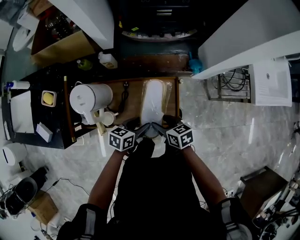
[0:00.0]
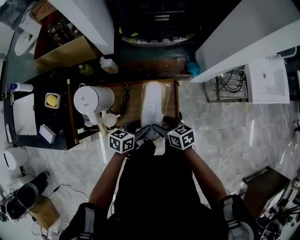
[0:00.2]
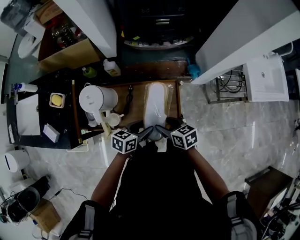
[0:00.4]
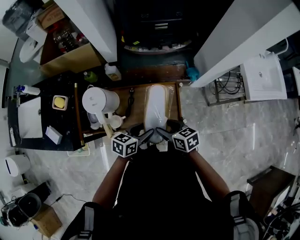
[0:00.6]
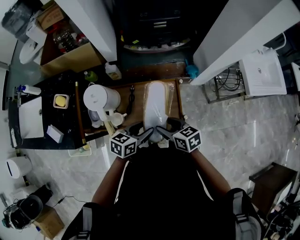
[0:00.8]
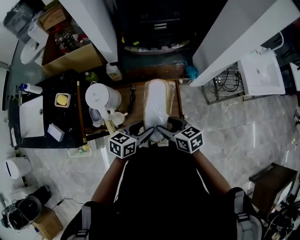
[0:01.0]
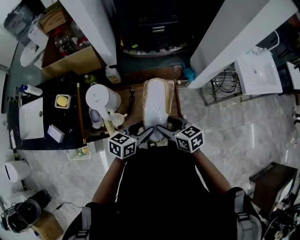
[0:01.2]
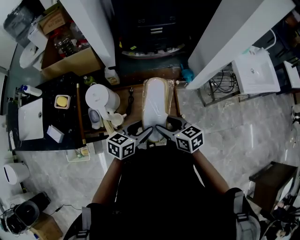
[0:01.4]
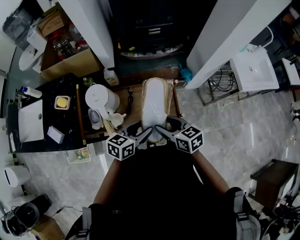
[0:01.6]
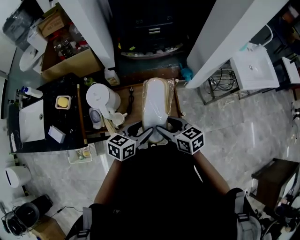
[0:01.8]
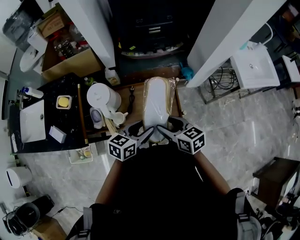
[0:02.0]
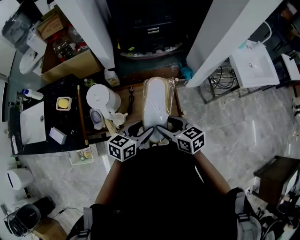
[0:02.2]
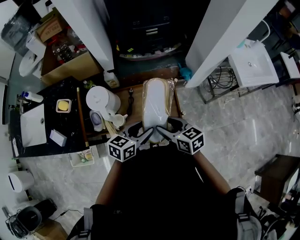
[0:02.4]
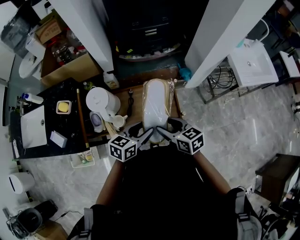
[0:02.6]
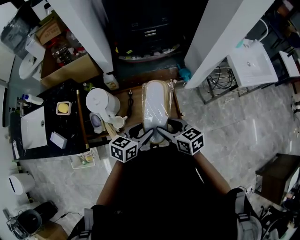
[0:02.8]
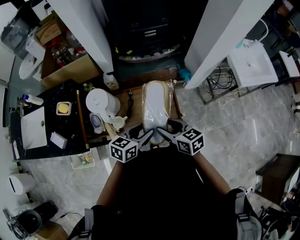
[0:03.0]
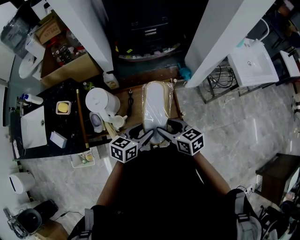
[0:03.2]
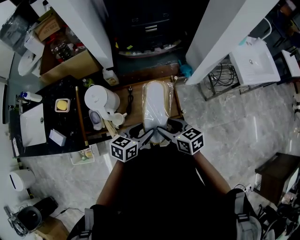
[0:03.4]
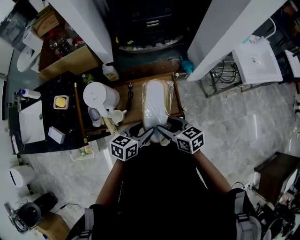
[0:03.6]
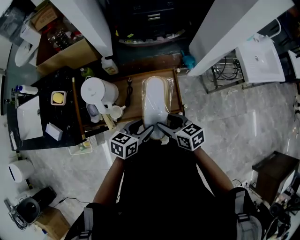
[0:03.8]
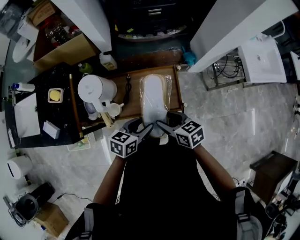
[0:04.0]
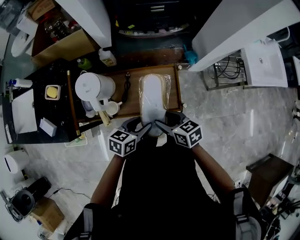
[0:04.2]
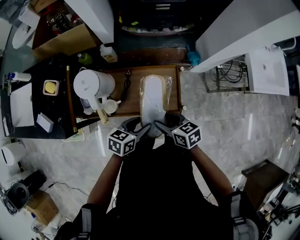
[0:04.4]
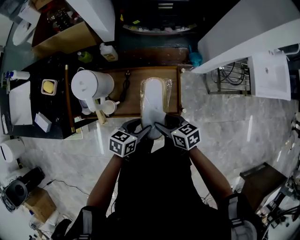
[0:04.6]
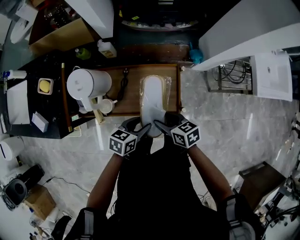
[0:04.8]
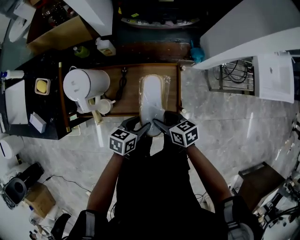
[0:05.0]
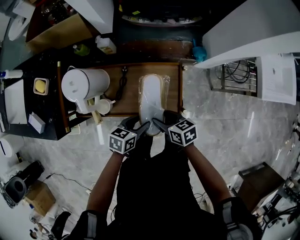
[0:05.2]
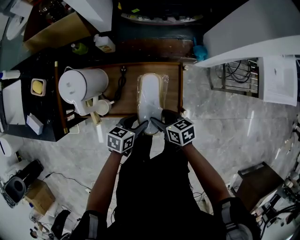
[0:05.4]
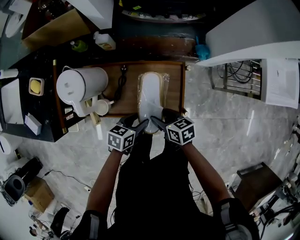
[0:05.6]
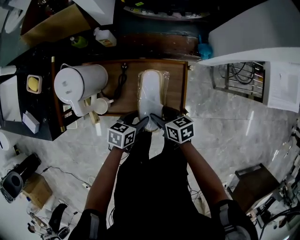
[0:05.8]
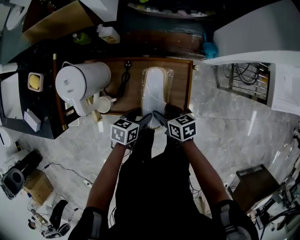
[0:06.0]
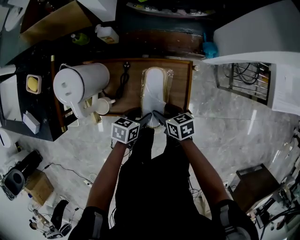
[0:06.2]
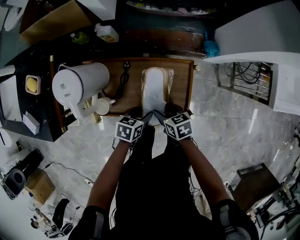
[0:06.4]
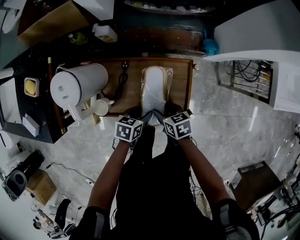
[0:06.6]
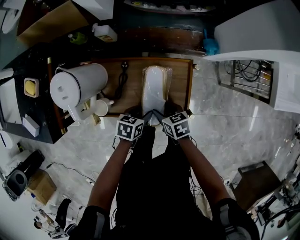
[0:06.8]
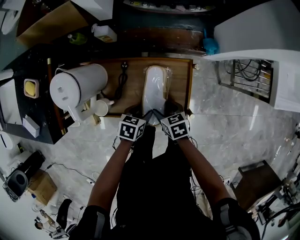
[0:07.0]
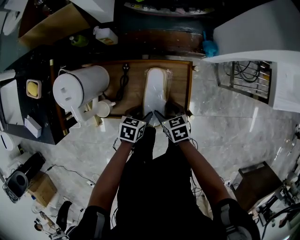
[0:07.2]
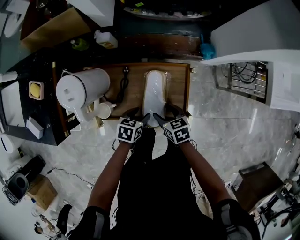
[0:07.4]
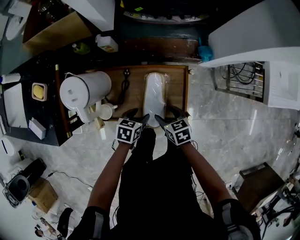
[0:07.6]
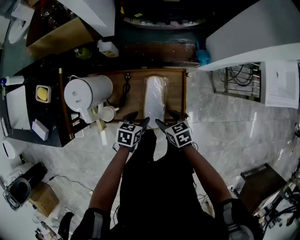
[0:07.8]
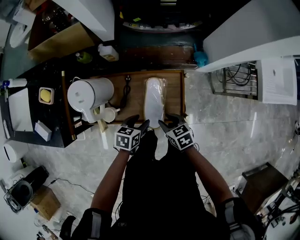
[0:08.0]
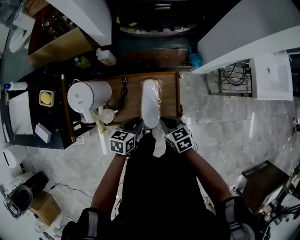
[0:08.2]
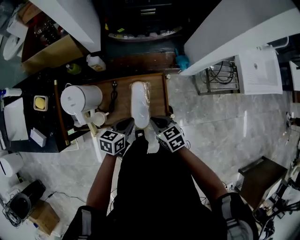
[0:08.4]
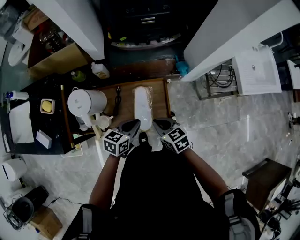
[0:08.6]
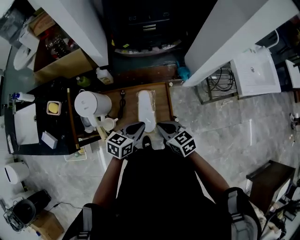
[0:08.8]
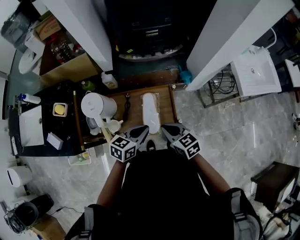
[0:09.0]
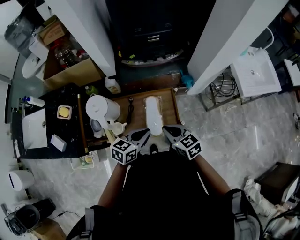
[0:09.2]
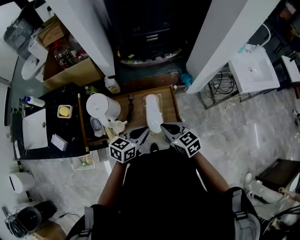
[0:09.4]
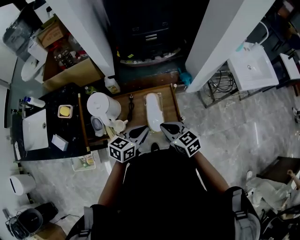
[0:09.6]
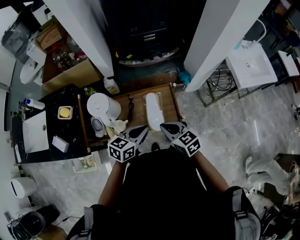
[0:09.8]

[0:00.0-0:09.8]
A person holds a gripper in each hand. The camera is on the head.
0:00.0 to 0:01.4: The grippers both shift upward and backward by some 15 cm.
0:01.4 to 0:02.8: The grippers stay close to where they were, moving slightly.
0:02.8 to 0:04.2: The grippers both shift downward by approximately 5 cm.
0:04.2 to 0:05.6: Both grippers move downward, roughly 15 cm.
0:05.6 to 0:07.0: Both grippers travel together downward, about 10 cm.
0:07.0 to 0:08.4: Both grippers travel together upward, approximately 15 cm. The left gripper turns by about 20 degrees, and closes its fingers; the right gripper closes its fingers.
0:08.4 to 0:09.8: The two grippers go approximately 15 cm upward and backward.

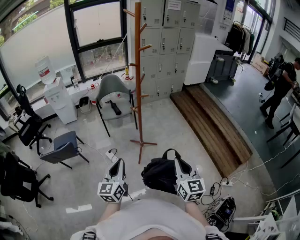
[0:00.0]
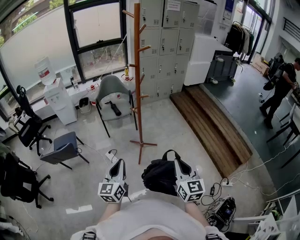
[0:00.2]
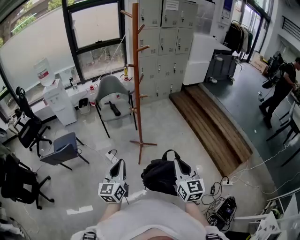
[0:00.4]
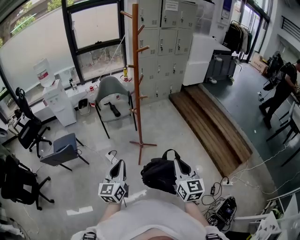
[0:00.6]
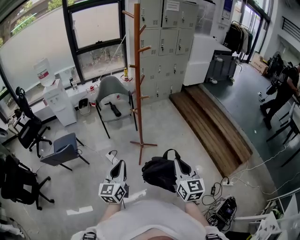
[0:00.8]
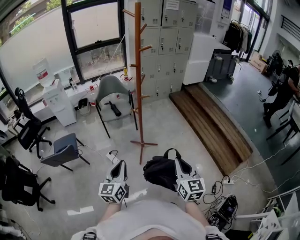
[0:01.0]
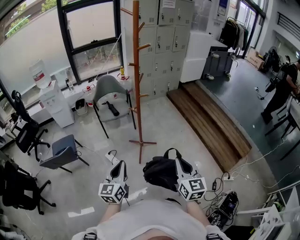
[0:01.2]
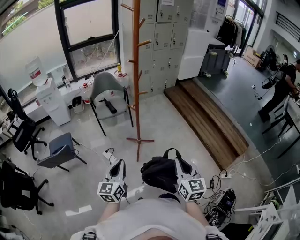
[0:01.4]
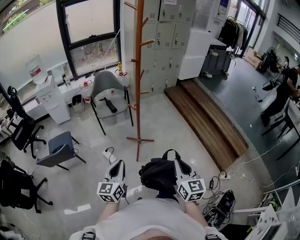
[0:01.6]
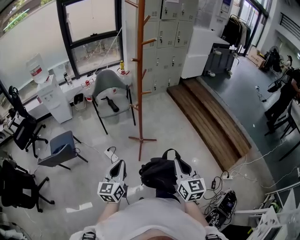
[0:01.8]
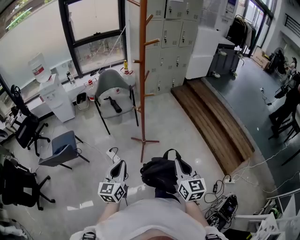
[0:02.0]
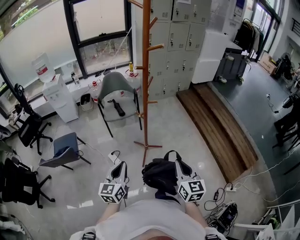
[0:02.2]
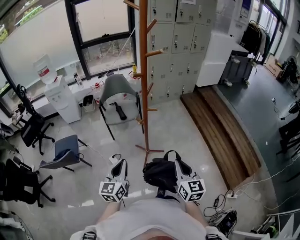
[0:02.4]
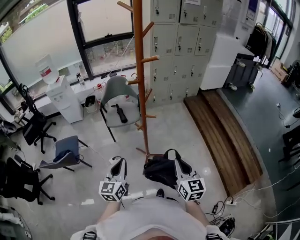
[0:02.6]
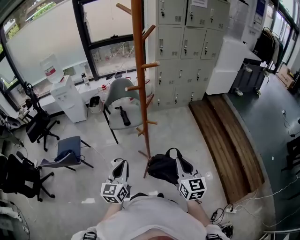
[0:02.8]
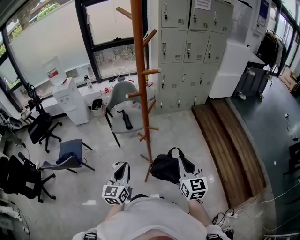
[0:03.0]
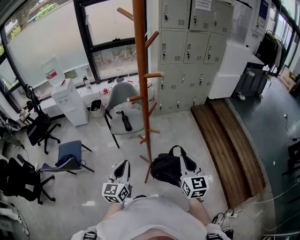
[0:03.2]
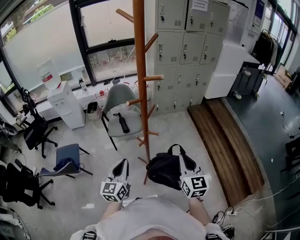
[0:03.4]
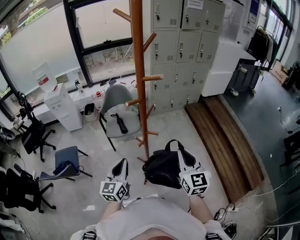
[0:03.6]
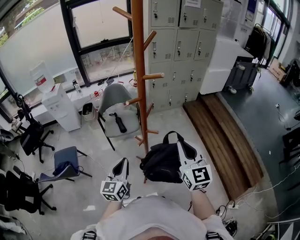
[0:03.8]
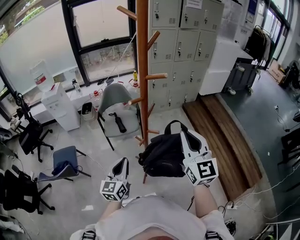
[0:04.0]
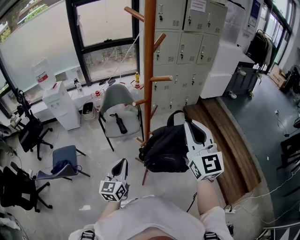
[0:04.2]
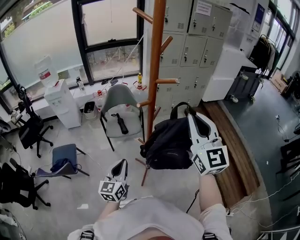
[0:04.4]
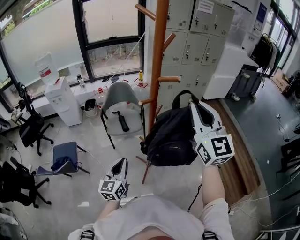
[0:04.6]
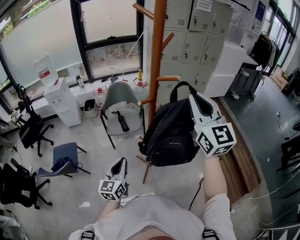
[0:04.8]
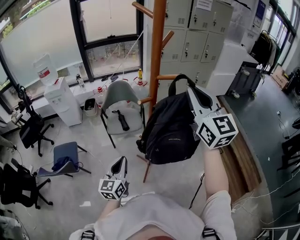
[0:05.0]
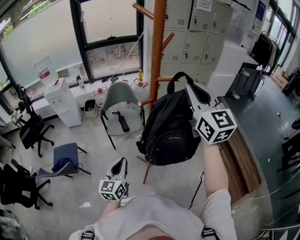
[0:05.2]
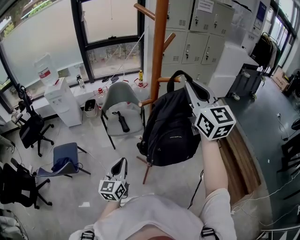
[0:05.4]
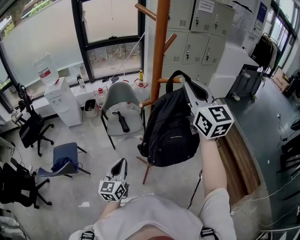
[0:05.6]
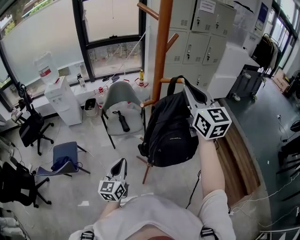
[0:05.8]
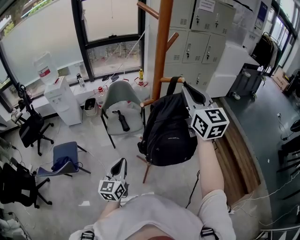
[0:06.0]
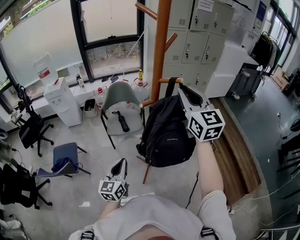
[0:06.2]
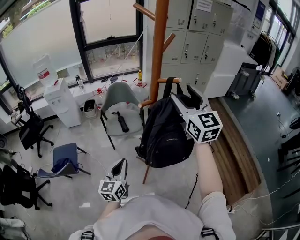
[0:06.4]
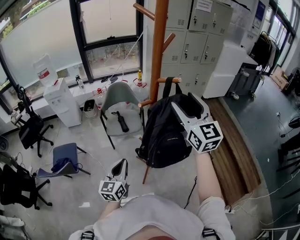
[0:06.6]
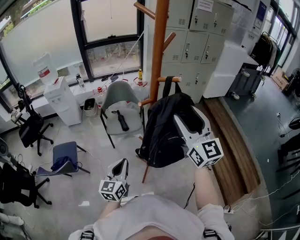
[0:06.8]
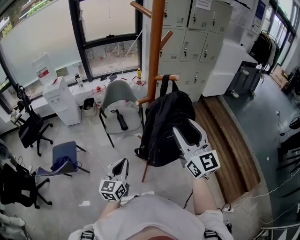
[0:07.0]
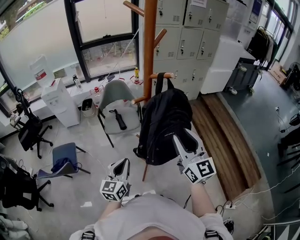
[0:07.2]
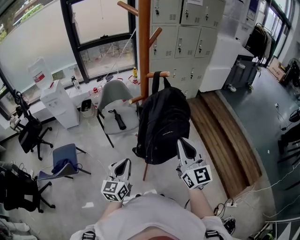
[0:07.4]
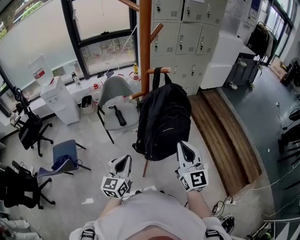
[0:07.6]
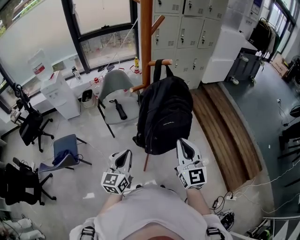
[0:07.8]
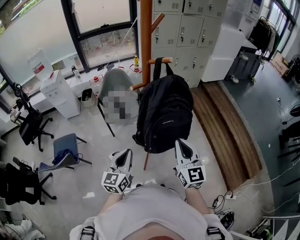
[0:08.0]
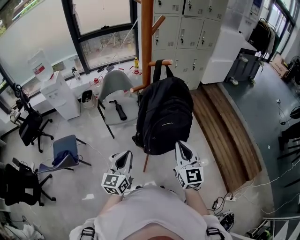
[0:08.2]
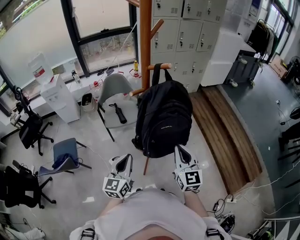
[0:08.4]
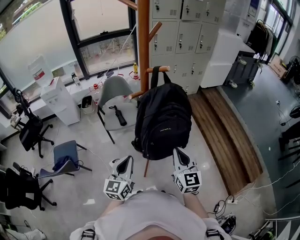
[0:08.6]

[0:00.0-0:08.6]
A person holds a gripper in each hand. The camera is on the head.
0:00.0 to 0:01.4: The grippers make only small movements.
0:01.4 to 0:02.8: Both grippers travel together forward, about 25 cm.
0:02.8 to 0:04.4: The left gripper heads forward and to the left, covering approximately 10 cm. Meanwhile the right gripper moves upward and forward, roughly 30 cm, and swivels about 30 degrees.
0:04.4 to 0:05.8: The right gripper goes about 10 cm forward.
0:05.8 to 0:07.2: The right gripper travels downward and backward by approximately 20 cm, and opens.
0:07.2 to 0:08.6: The right gripper shifts some 10 cm downward, and closes.

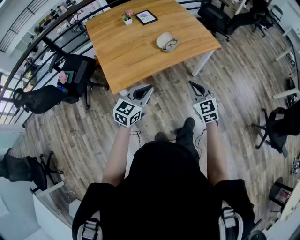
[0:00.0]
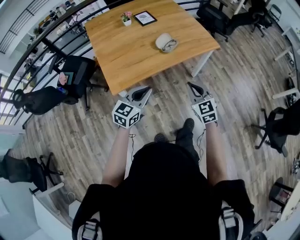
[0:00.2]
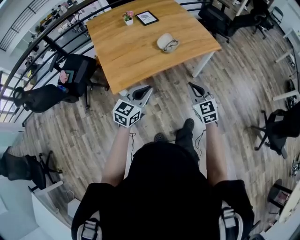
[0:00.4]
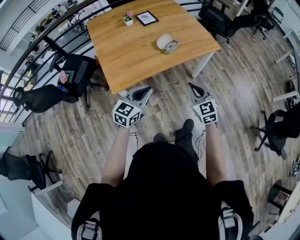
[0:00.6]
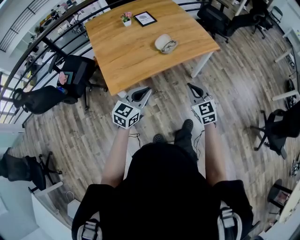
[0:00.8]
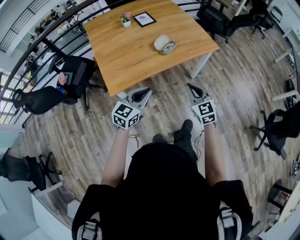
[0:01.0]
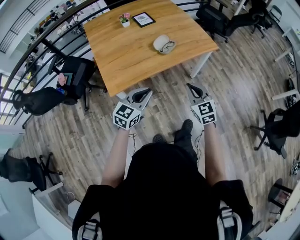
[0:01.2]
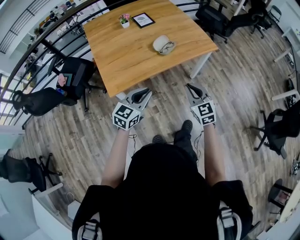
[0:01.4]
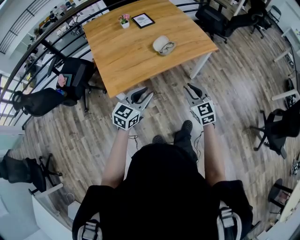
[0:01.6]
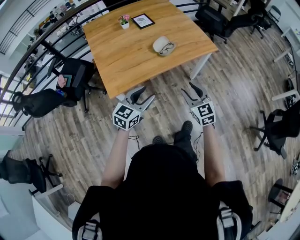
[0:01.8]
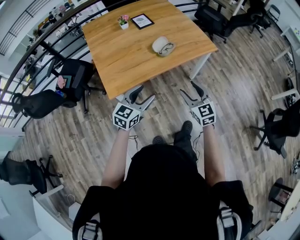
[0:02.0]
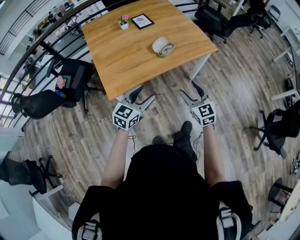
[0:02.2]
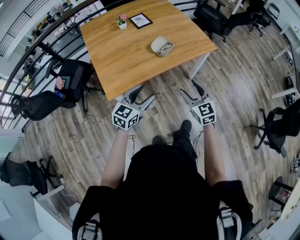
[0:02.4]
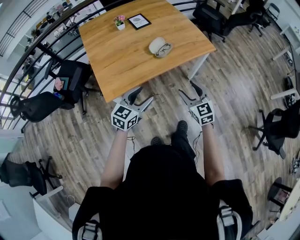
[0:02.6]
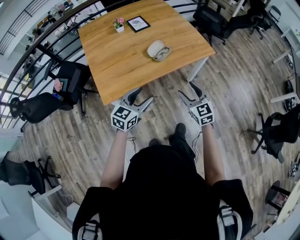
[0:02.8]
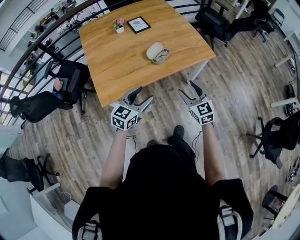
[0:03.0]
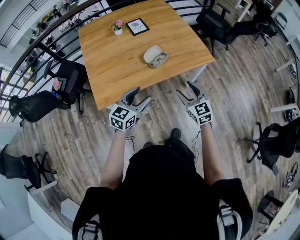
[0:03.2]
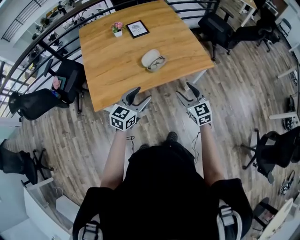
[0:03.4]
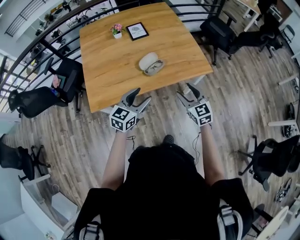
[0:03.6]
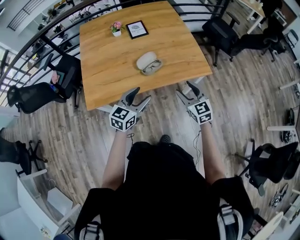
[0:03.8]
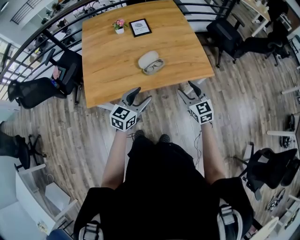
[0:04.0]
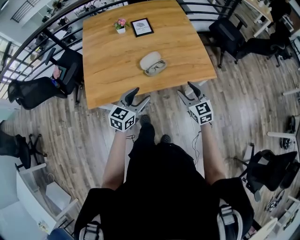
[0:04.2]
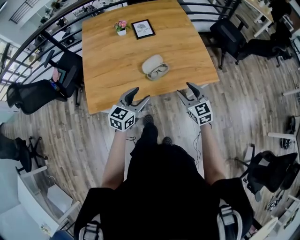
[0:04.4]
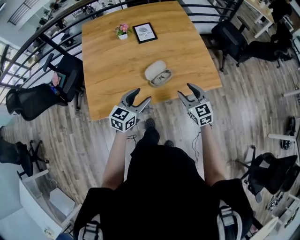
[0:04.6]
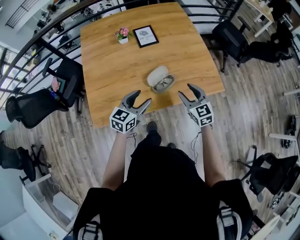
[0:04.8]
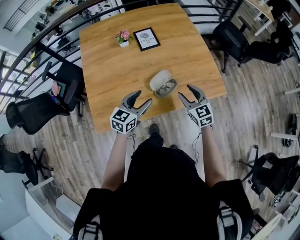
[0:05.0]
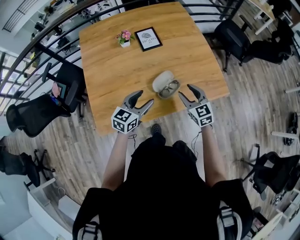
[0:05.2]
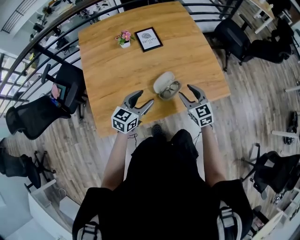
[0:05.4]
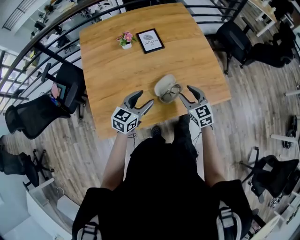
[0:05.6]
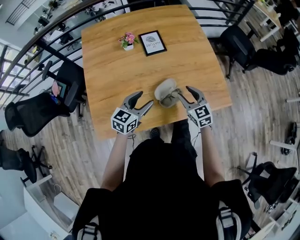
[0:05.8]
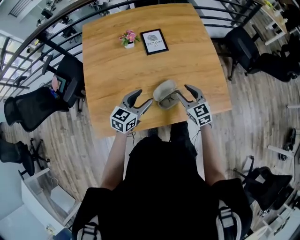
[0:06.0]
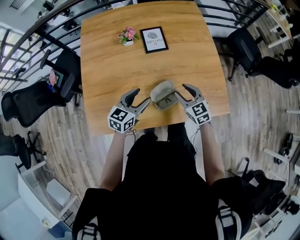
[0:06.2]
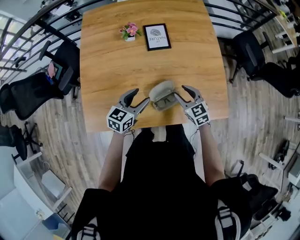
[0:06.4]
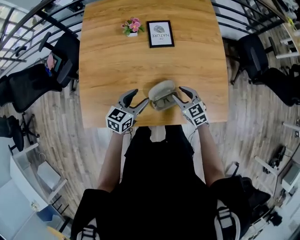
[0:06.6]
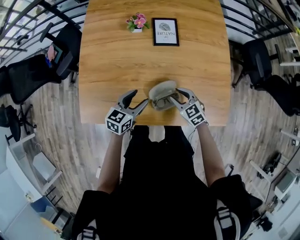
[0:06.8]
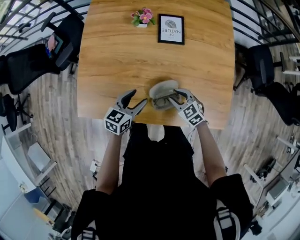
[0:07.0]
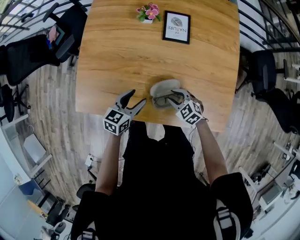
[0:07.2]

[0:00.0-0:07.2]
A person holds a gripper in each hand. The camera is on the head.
0:00.0 to 0:01.4: The grippers move only a little.
0:01.4 to 0:02.8: Both grippers move forward, about 5 cm. The right gripper opens its fingers, while the left gripper opens up.
0:02.8 to 0:04.4: The right gripper is displaced forward by roughly 20 cm, while the left gripper is displaced forward and to the right by roughly 20 cm.
0:04.4 to 0:05.8: Both grippers move forward and to the left, approximately 20 cm.
0:05.8 to 0:07.2: The right gripper goes roughly 15 cm downward, and rotates some 50 degrees; the left gripper shifts approximately 10 cm downward, and turns by some 30 degrees.
